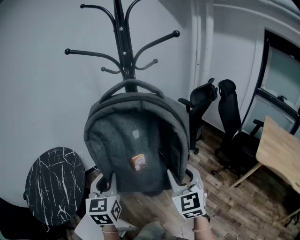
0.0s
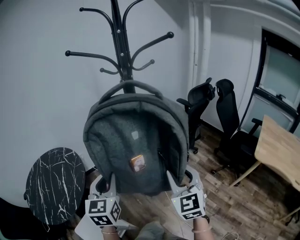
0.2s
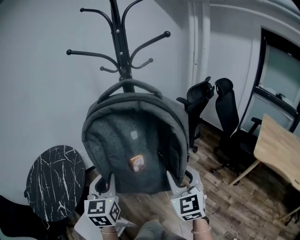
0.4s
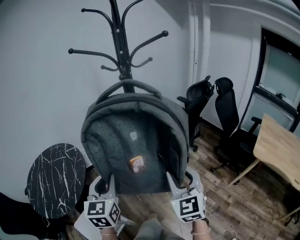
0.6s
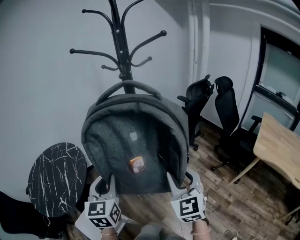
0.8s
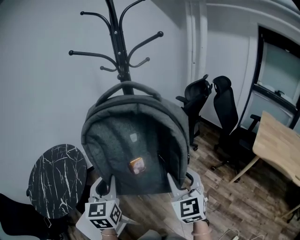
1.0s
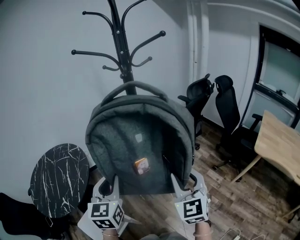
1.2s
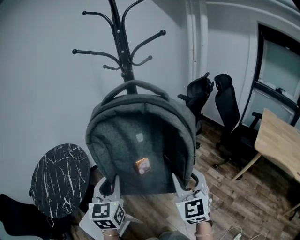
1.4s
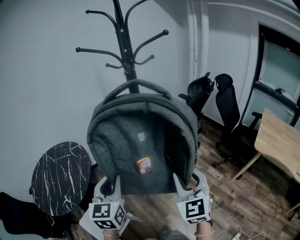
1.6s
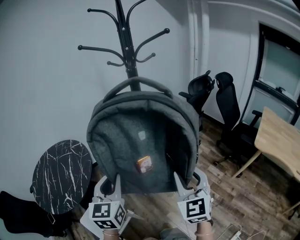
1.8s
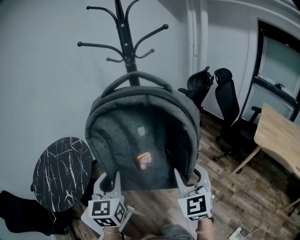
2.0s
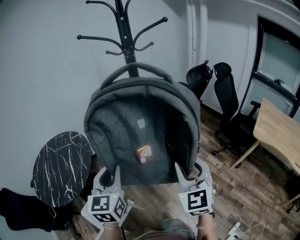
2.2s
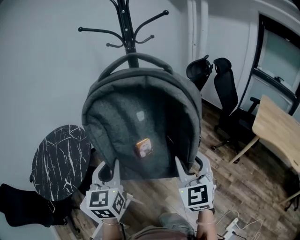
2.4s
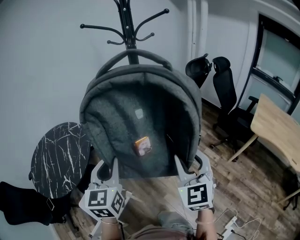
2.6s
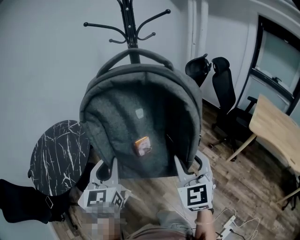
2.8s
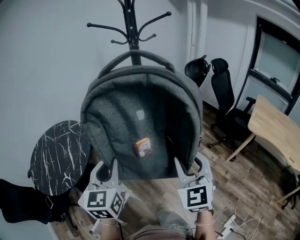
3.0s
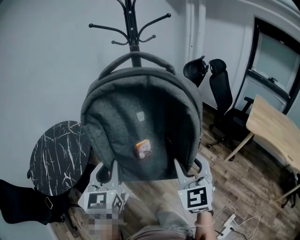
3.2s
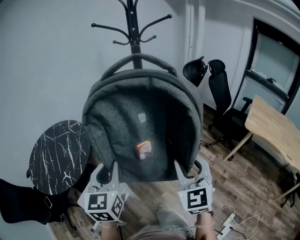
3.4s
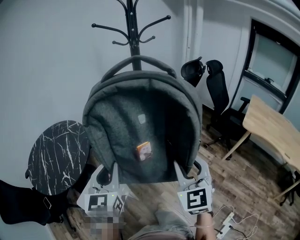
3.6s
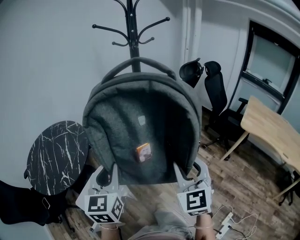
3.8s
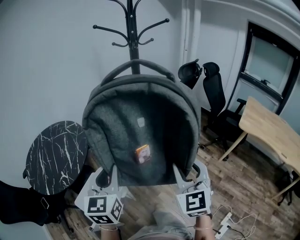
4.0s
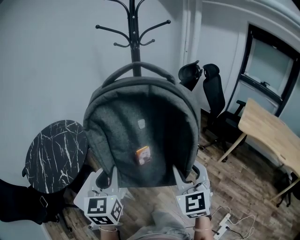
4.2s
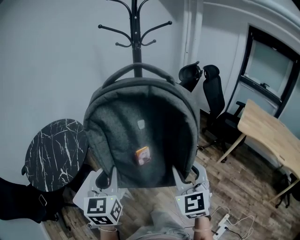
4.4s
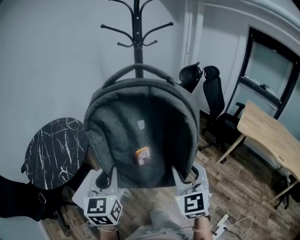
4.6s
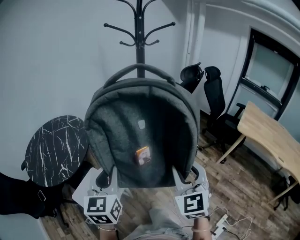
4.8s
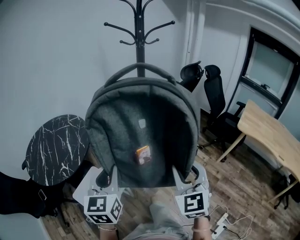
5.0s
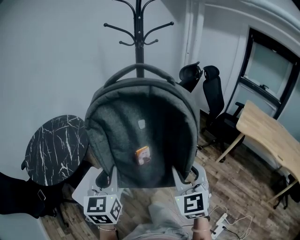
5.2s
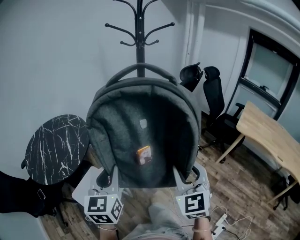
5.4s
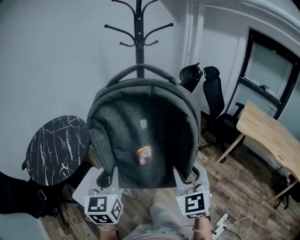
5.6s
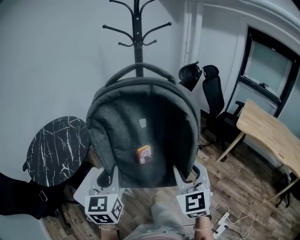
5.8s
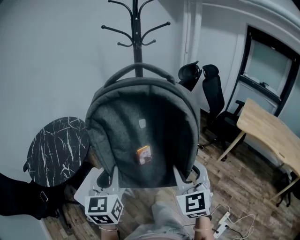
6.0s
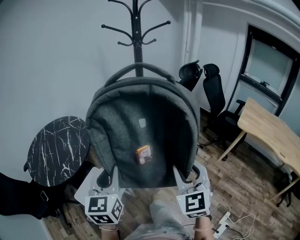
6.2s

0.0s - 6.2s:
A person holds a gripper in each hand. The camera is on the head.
0.0s - 1.6s: The two grippers go about 10 cm backward.
1.6s - 3.2s: Both grippers move backward, approximately 10 cm.
3.2s - 4.6s: Both grippers travel together backward, roughly 10 cm.
4.6s - 6.2s: The grippers stay close to where they were, moving slightly.

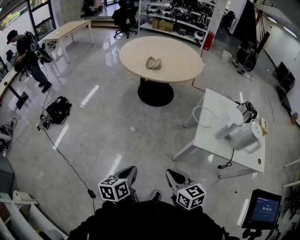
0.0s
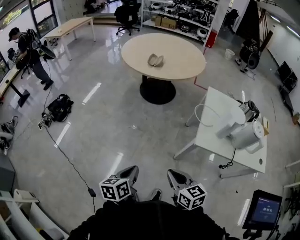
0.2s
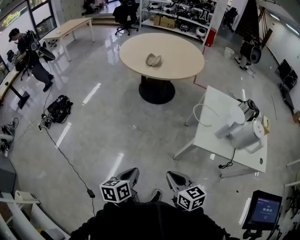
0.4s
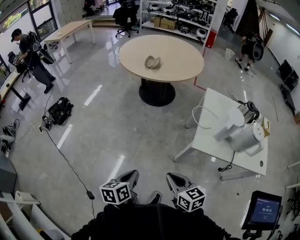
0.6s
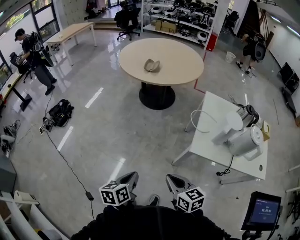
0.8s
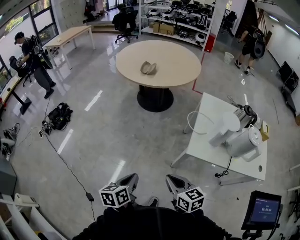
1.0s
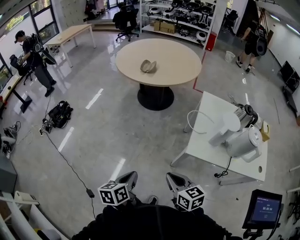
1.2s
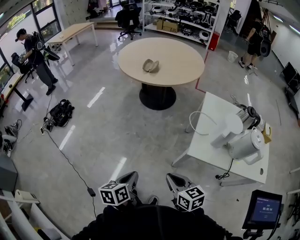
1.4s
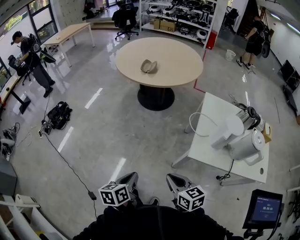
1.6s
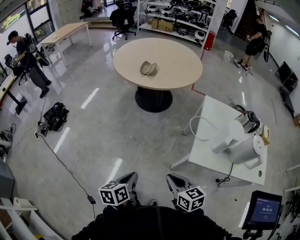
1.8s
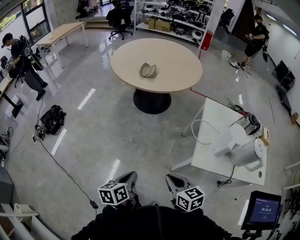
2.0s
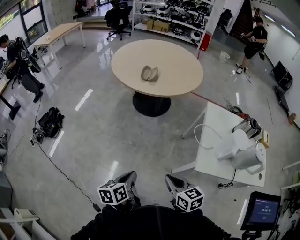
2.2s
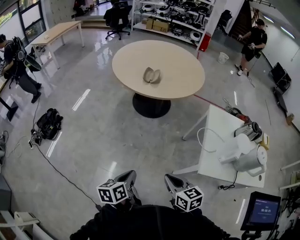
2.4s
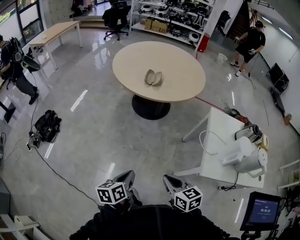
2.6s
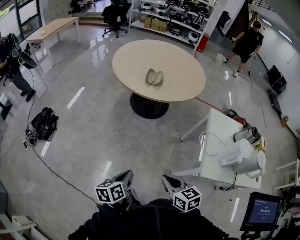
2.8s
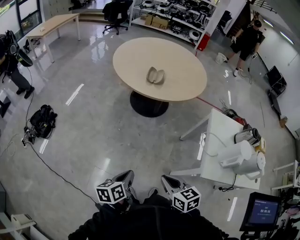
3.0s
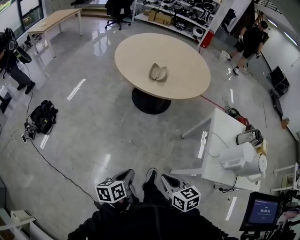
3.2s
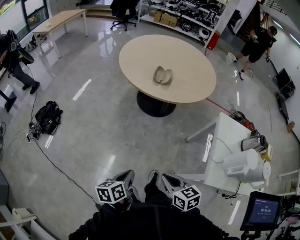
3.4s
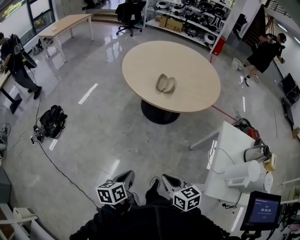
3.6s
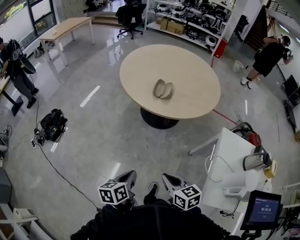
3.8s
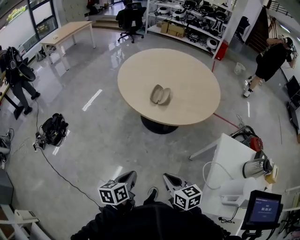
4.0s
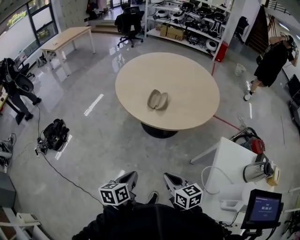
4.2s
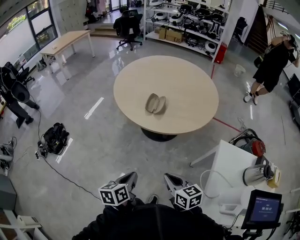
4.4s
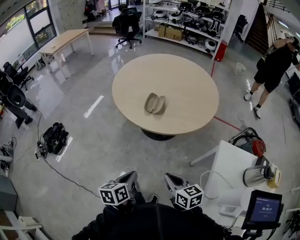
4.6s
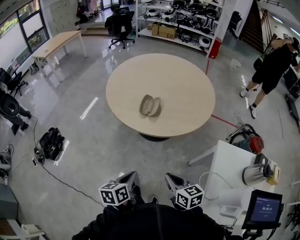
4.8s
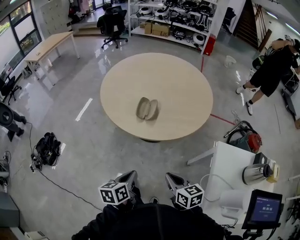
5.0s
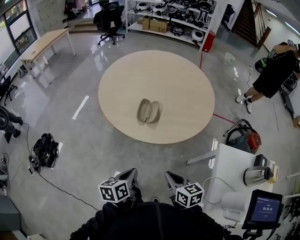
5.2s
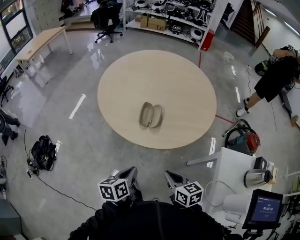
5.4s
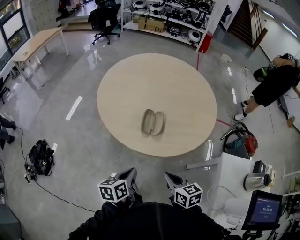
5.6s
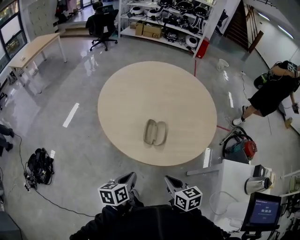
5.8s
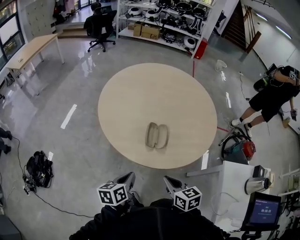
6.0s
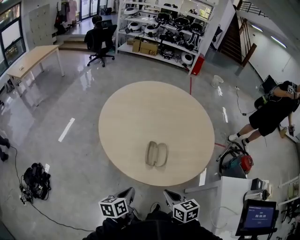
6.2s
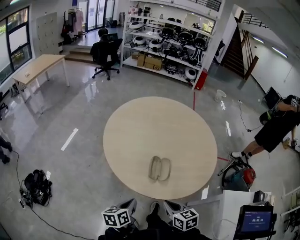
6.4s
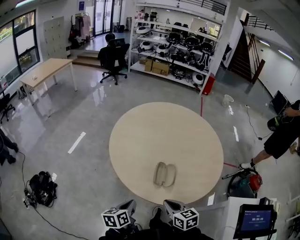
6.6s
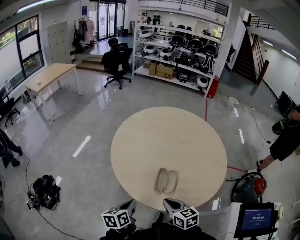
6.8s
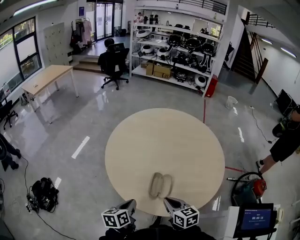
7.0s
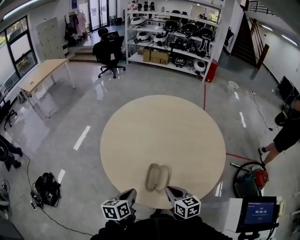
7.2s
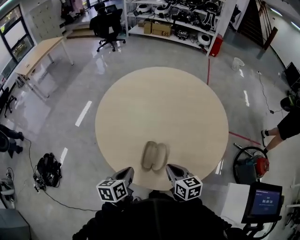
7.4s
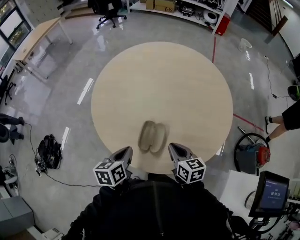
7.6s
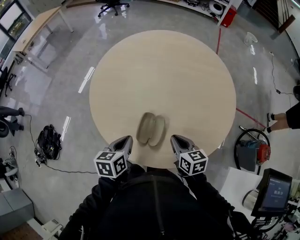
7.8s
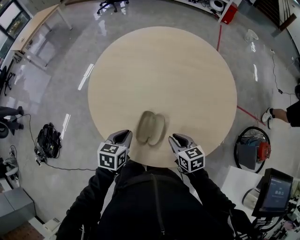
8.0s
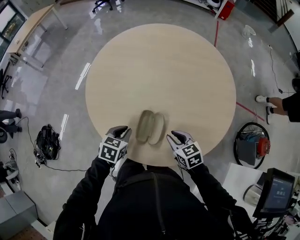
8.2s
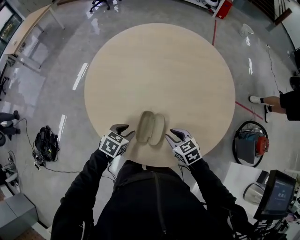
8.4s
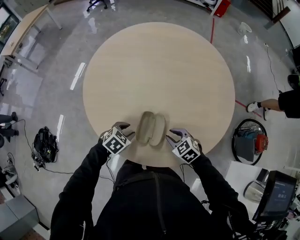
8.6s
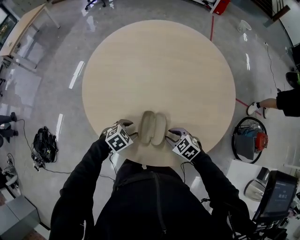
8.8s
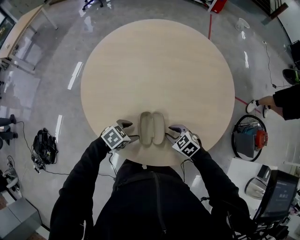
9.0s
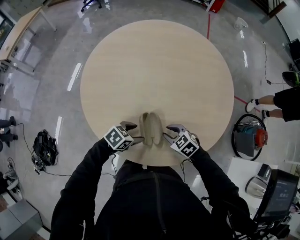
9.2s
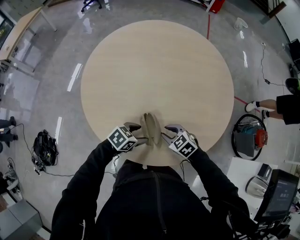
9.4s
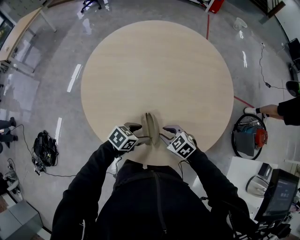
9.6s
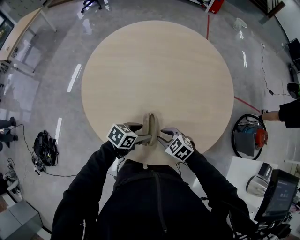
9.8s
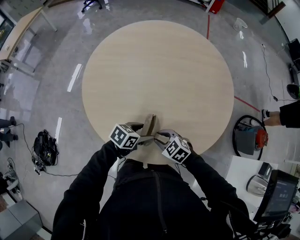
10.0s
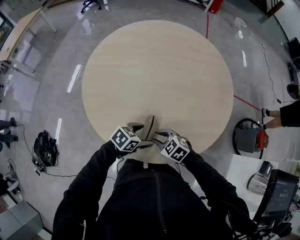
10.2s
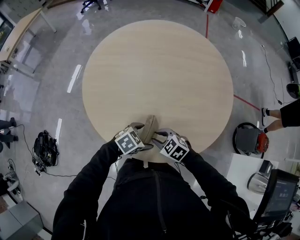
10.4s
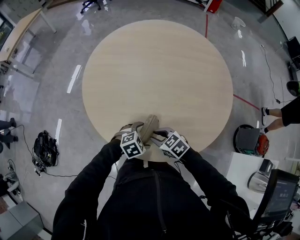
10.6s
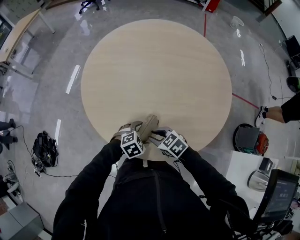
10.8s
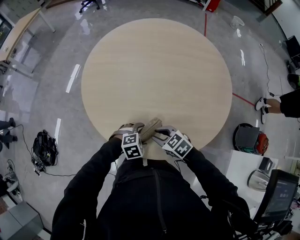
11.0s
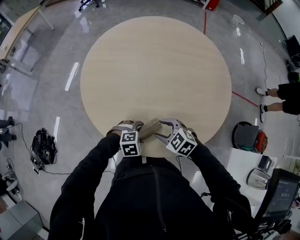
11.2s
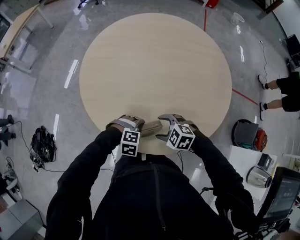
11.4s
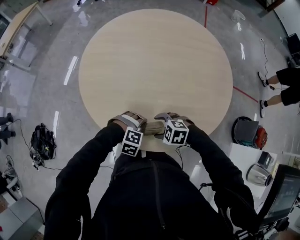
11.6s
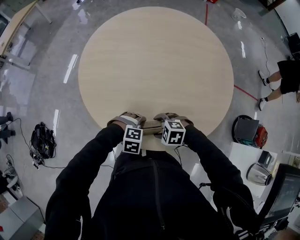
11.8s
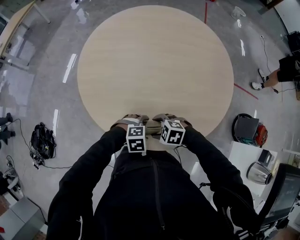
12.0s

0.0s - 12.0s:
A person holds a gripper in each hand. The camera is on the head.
0.0s - 1.6s: Both grippers travel together to the right and forward, approximately 10 cm.
1.6s - 3.0s: The grippers both shift forward and to the left by approximately 25 cm.
3.0s - 4.4s: The grippers both shift forward and to the right by some 25 cm.
4.4s - 6.0s: The grippers both shift forward by approximately 25 cm.
6.0s - 7.6s: Both grippers move forward and to the right, approximately 25 cm.
7.6s - 9.0s: Both grippers travel together downward, approximately 15 cm. The right gripper rotates approximately 50 degrees. The left gripper changes its angle by roughly 60 degrees, and opens its fingers.
9.0s - 10.4s: The left gripper changes place by about 10 cm. Meanwhile the right gripper moves about 5 cm.
10.4s - 12.0s: The right gripper moves approximately 5 cm, changes its angle by some 20 degrees, and opens; the left gripper moves approximately 5 cm, and rotates roughly 40 degrees.

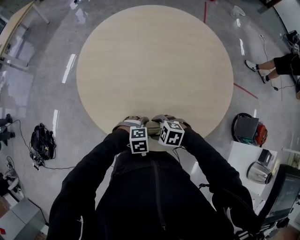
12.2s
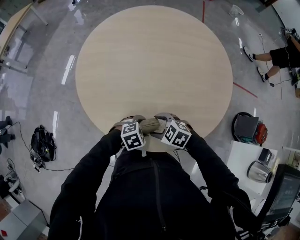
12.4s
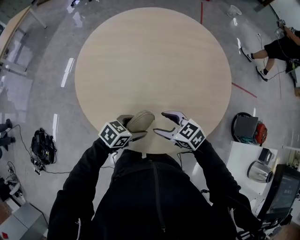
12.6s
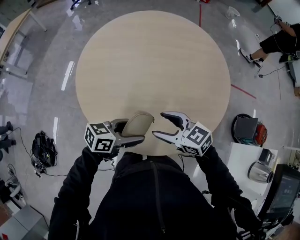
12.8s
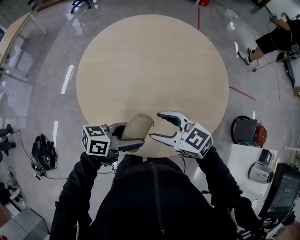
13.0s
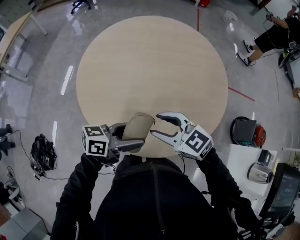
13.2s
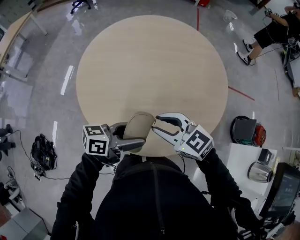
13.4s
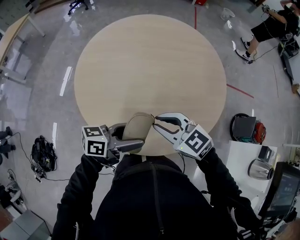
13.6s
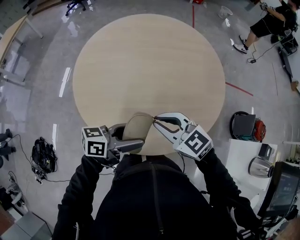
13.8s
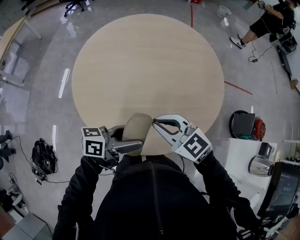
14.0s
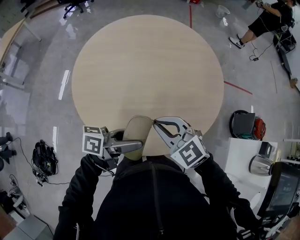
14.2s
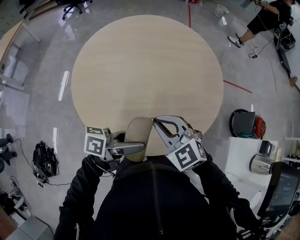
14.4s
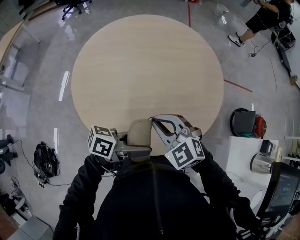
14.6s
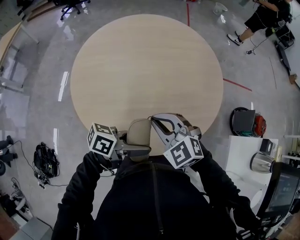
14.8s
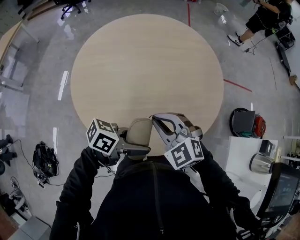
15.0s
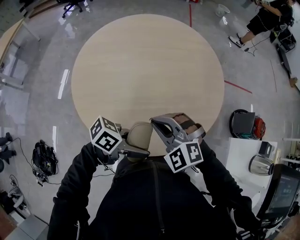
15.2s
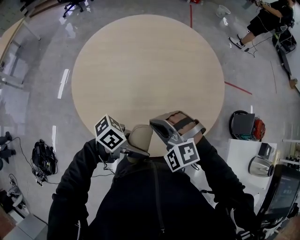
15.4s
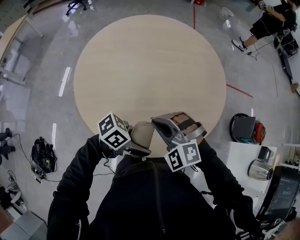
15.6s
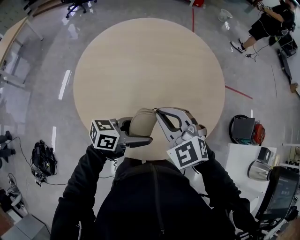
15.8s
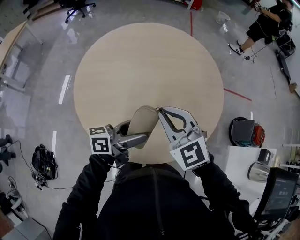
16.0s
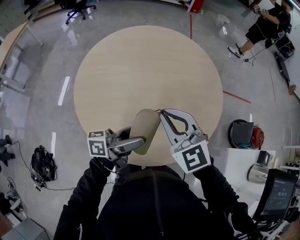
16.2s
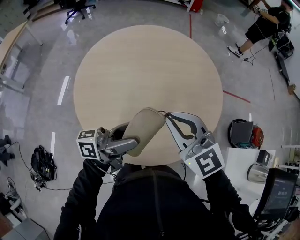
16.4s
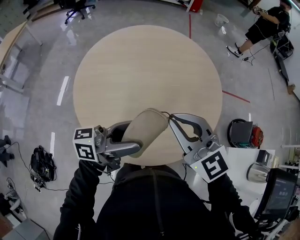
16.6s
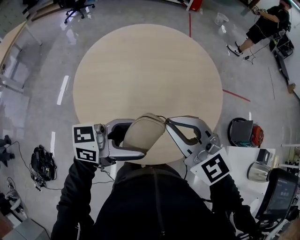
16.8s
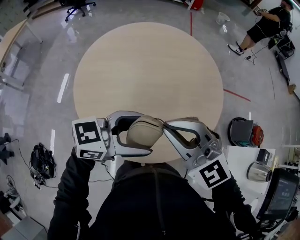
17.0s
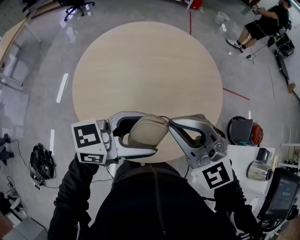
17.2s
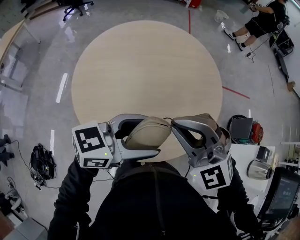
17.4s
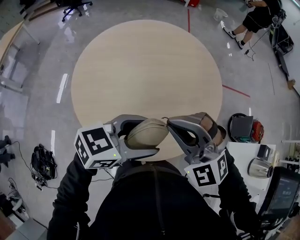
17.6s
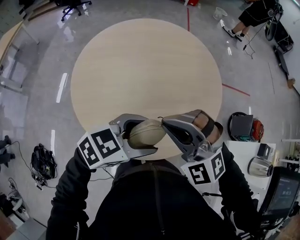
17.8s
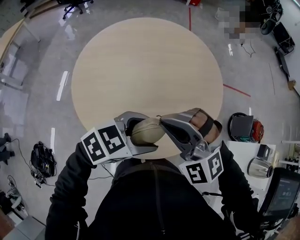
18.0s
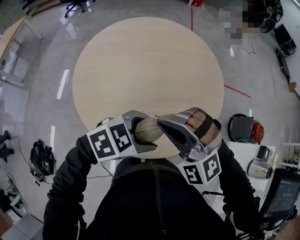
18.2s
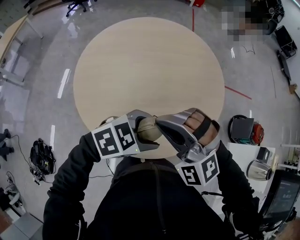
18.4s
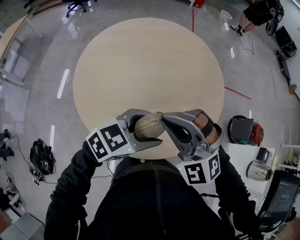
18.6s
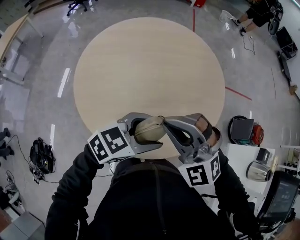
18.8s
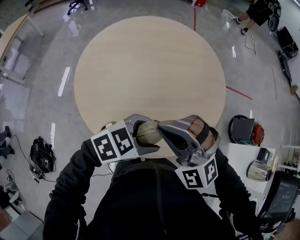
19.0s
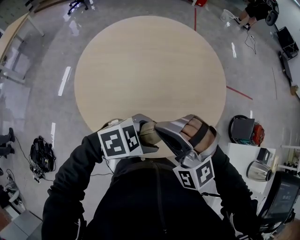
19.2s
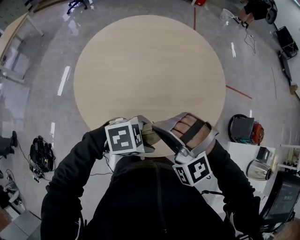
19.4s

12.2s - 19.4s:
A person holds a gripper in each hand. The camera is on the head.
12.2s - 13.6s: Both grippers travel together upward, about 20 cm. The left gripper angles its fingers upward, by about 60 degrees, while the right gripper tips its fingers upward by some 30 degrees, and closes its fingers.
13.6s - 15.0s: The right gripper swivels some 30 degrees, while the left gripper changes its angle by approximately 20 degrees.
15.0s - 16.6s: Both grippers travel together upward, approximately 10 cm. The left gripper changes its angle by roughly 40 degrees. Meanwhile the right gripper rotates approximately 30 degrees.
16.6s - 18.0s: The right gripper moves some 5 cm, and rotates around the line of its fingers by approximately 40 degrees, counterclockwise from behind, while the left gripper shifts by roughly 10 cm, and angles its fingers downward, by approximately 50 degrees.
18.0s - 19.4s: The right gripper ends up approximately 5 cm from where it was. The left gripper heads downward, covering some 5 cm, and turns by roughly 20 degrees.
